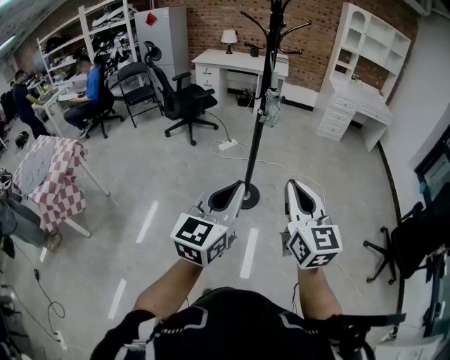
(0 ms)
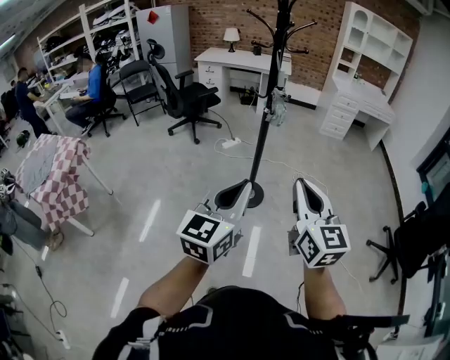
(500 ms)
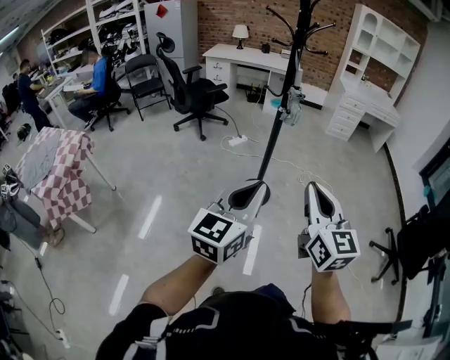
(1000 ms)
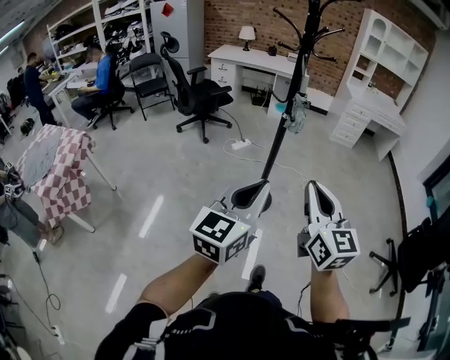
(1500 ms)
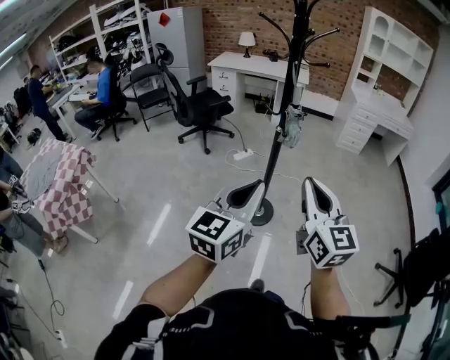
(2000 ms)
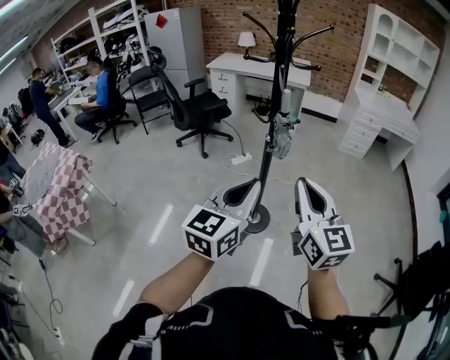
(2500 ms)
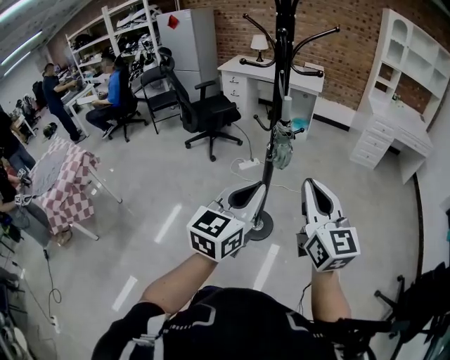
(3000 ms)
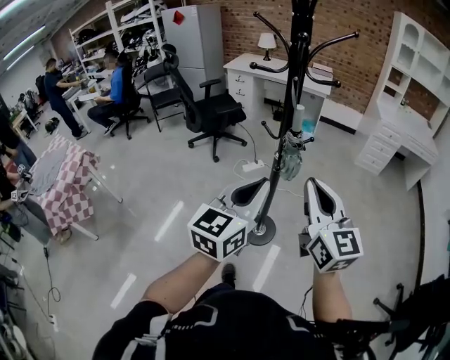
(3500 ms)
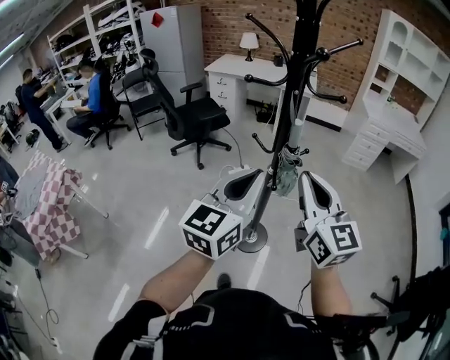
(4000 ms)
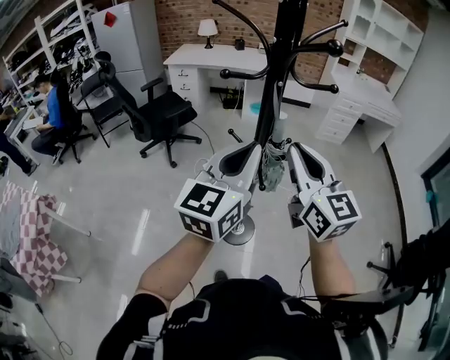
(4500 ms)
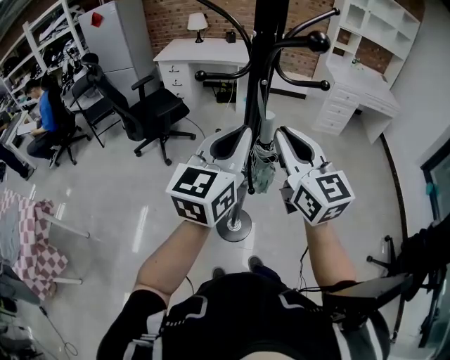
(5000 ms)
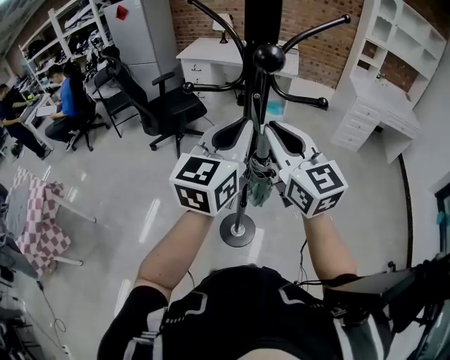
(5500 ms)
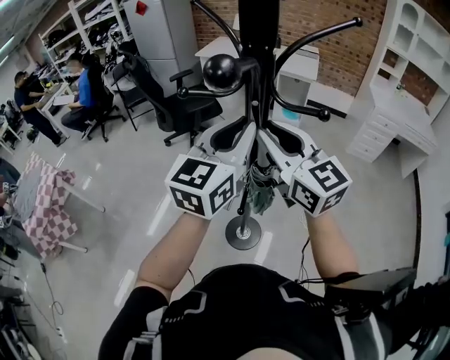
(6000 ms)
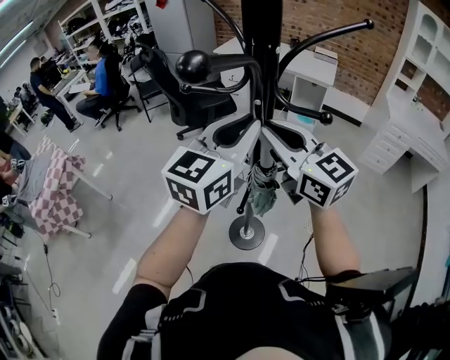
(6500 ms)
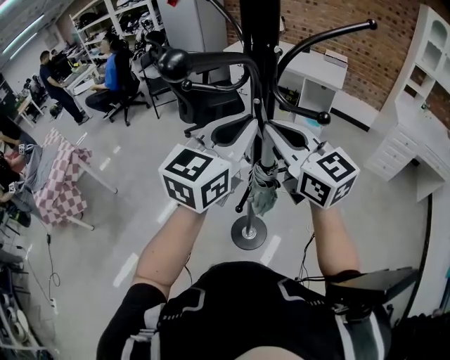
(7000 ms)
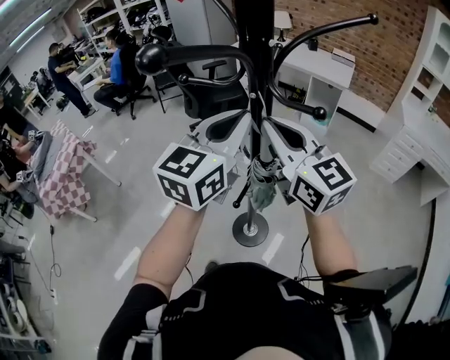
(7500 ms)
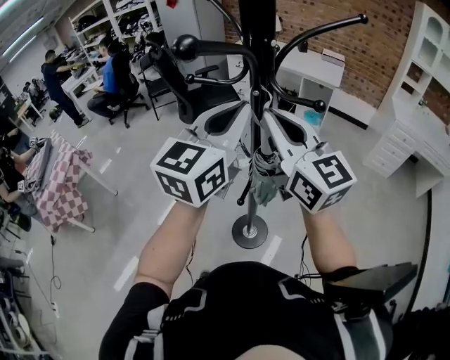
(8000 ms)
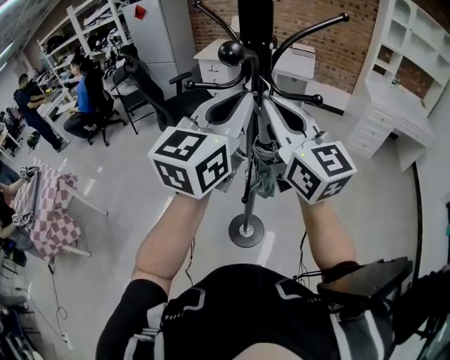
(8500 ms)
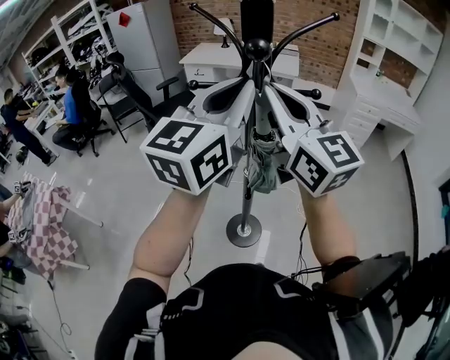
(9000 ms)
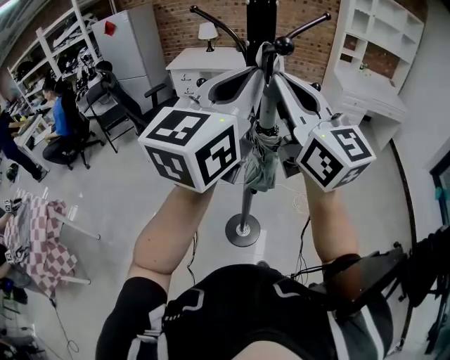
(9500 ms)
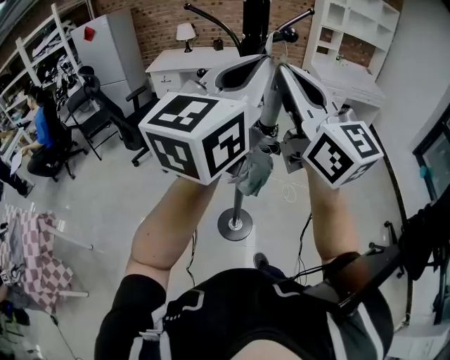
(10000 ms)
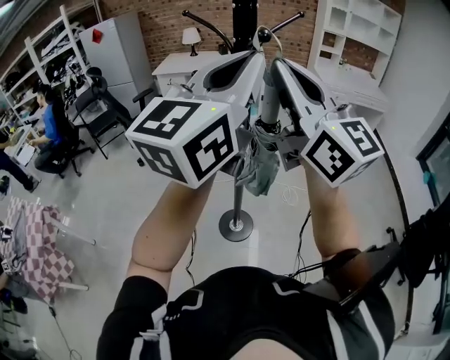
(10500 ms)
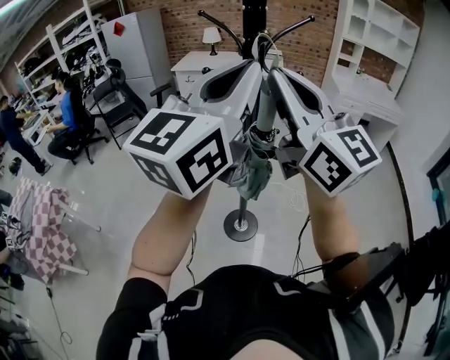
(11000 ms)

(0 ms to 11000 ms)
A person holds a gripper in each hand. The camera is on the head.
0 ms - 2000 ms: Both grippers move forward, approximately 15 cm.
2000 ms - 3500 ms: Both grippers travel together forward, roughly 20 cm.
3500 ms - 5500 ms: The grippers both shift forward by approximately 25 cm.
5500 ms - 7500 ms: The right gripper changes its angle by about 20 degrees.
7500 ms - 9000 ms: Both grippers travel together upward, approximately 10 cm. The right gripper turns by approximately 20 degrees.
9000 ms - 11000 ms: Both grippers travel together backward and upward, some 15 cm.

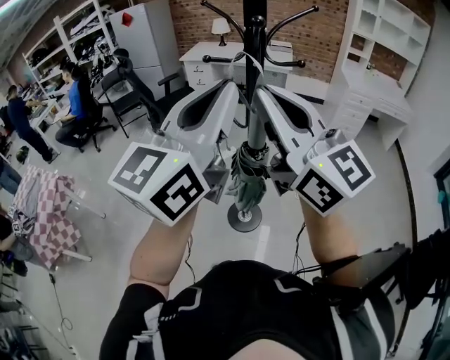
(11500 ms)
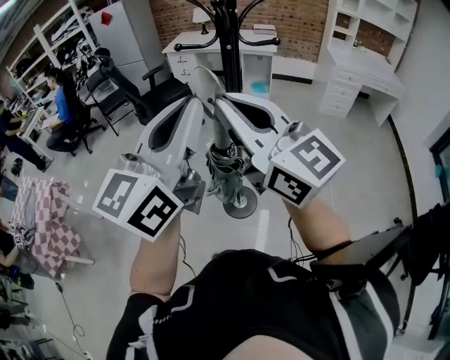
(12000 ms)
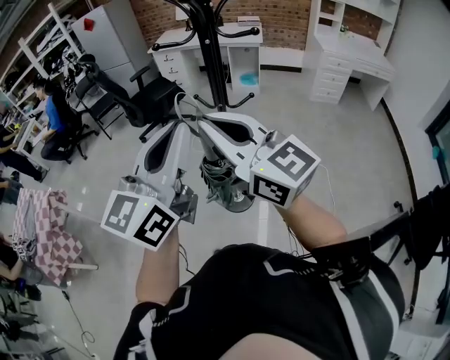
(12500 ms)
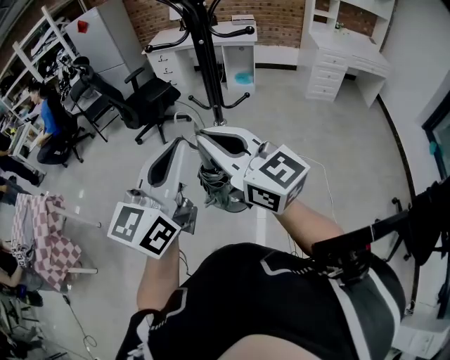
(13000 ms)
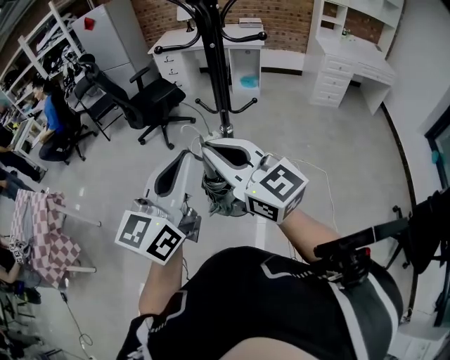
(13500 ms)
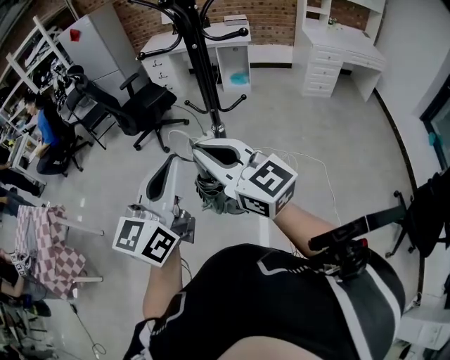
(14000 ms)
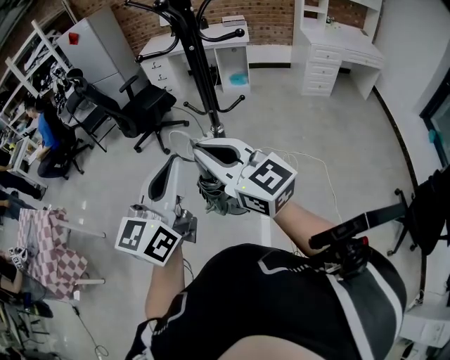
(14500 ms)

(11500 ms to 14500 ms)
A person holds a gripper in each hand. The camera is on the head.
11500 ms - 13000 ms: The grippers both shift downward by some 15 cm.
13000 ms - 14500 ms: The grippers make only small movements.

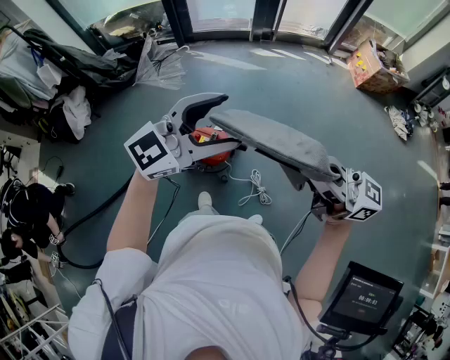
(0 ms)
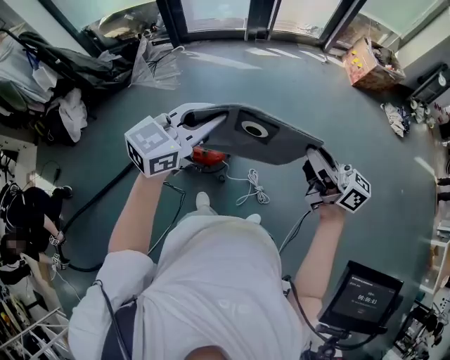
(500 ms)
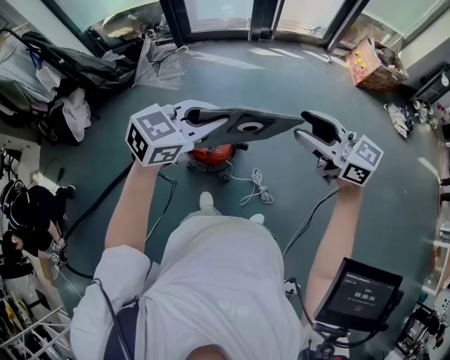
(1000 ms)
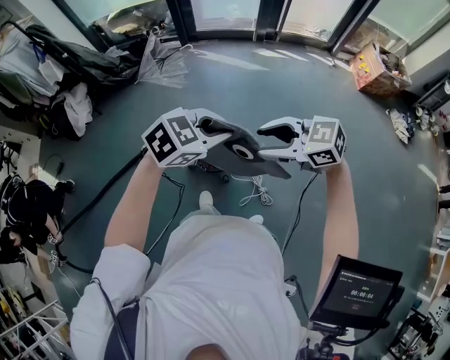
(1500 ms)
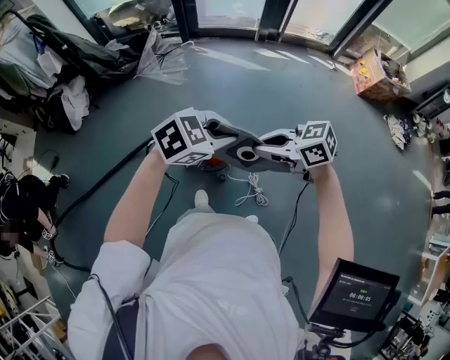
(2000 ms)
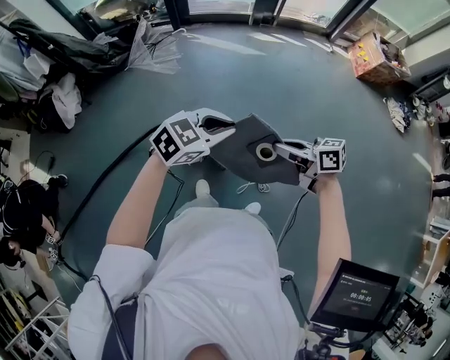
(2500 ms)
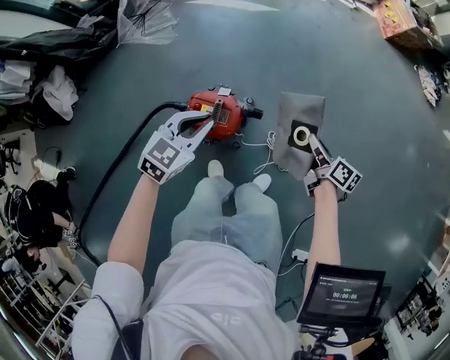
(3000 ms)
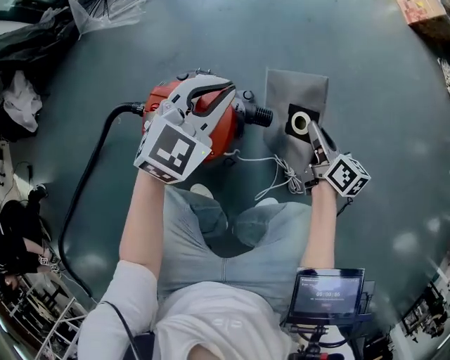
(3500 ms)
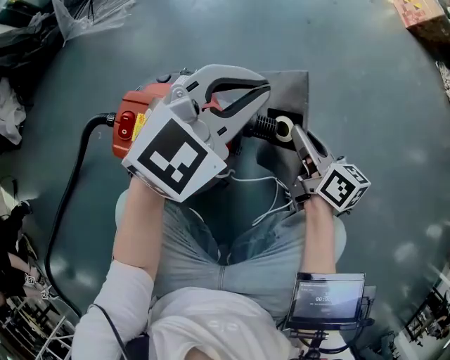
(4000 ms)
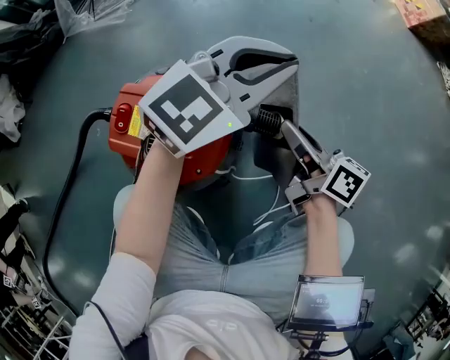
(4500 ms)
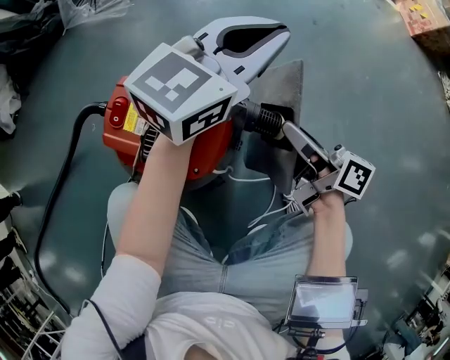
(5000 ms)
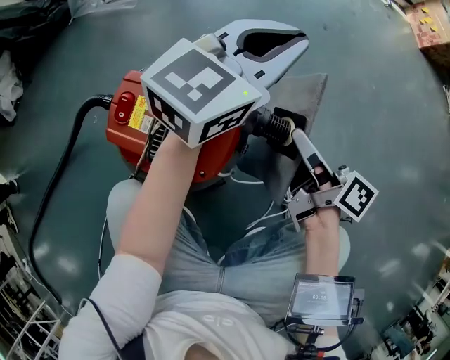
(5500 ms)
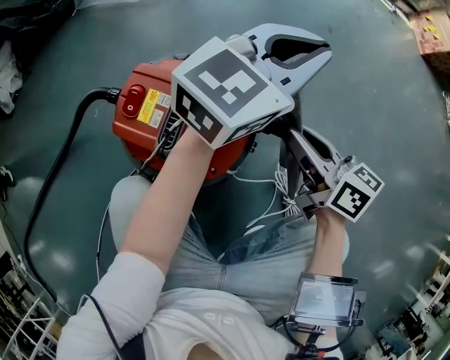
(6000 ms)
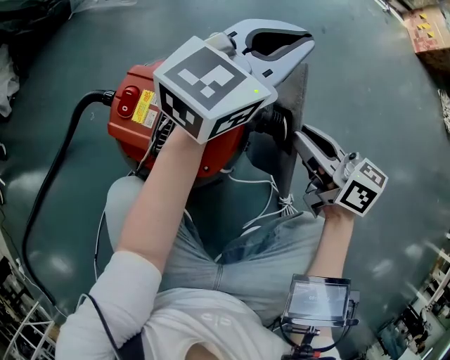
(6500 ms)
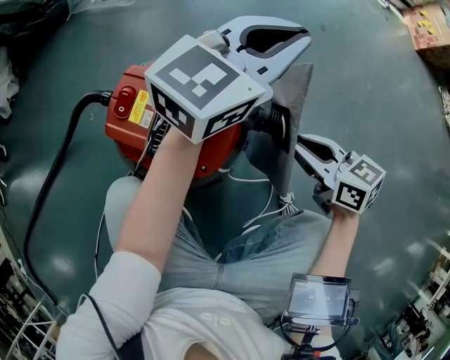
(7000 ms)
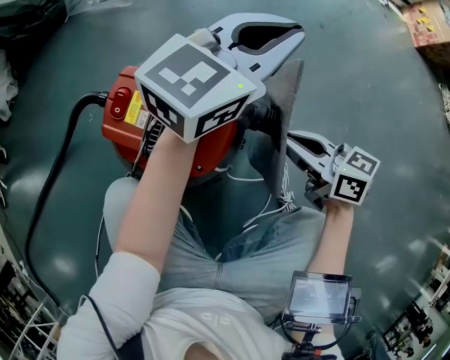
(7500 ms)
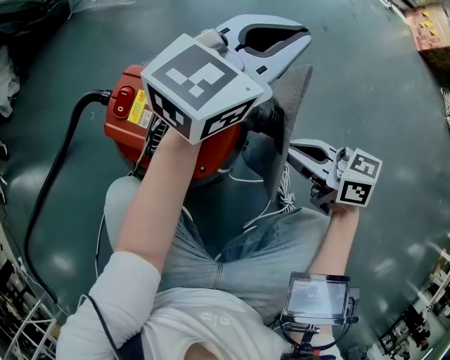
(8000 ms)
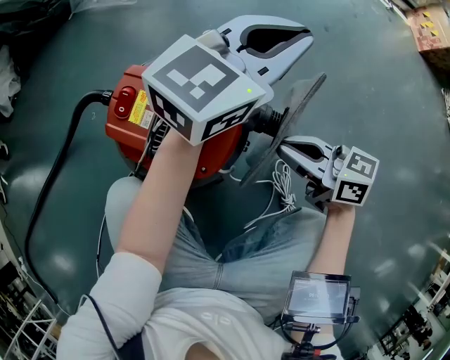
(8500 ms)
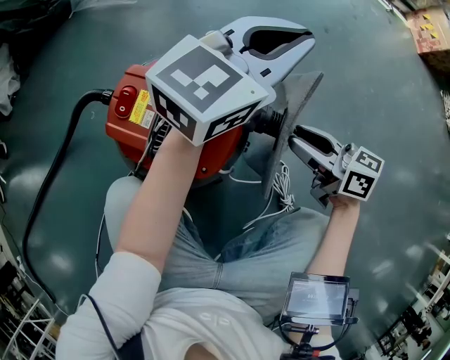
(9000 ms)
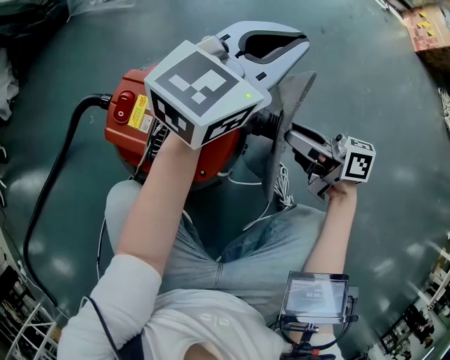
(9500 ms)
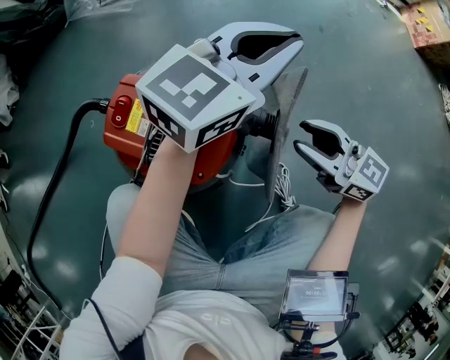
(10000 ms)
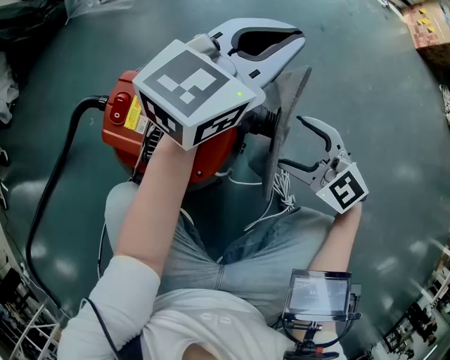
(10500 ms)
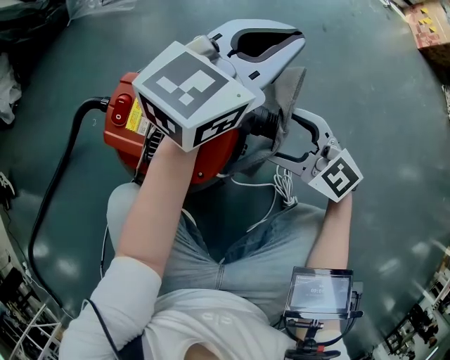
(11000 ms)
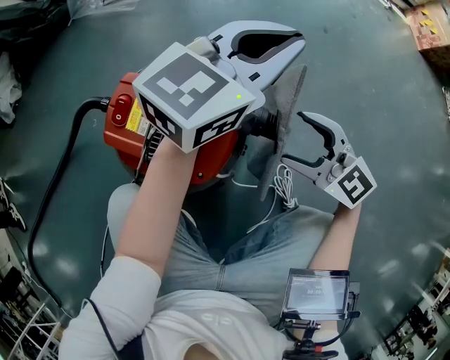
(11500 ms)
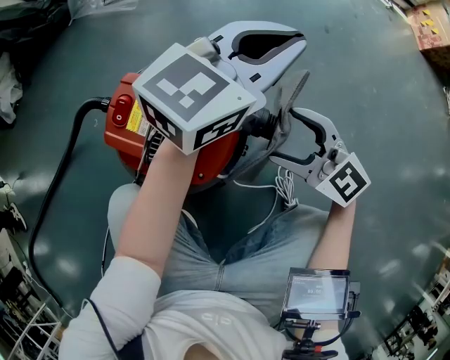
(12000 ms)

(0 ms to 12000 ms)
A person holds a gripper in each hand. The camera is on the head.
0 ms - 2000 ms: The grippers both shift downward by roughly 15 cm. The left gripper points its fingers some 40 degrees further downward, and closes. The right gripper angles its fingers downward, by approximately 40 degrees, and opens, then closes once more.
2000 ms - 4000 ms: Both grippers travel together downward, some 60 cm. The right gripper turns by about 70 degrees, while the left gripper changes its angle by some 30 degrees.
4000 ms - 6000 ms: The right gripper travels to the left by about 5 cm. The left gripper is displaced forward by some 5 cm, and changes its angle by approximately 30 degrees.
6000 ms - 8000 ms: The right gripper turns by roughly 20 degrees.
8000 ms - 10000 ms: The right gripper swivels approximately 30 degrees, and opens.
10000 ms - 12000 ms: The right gripper is displaced to the left by roughly 5 cm, swivels about 20 degrees, and opens up.

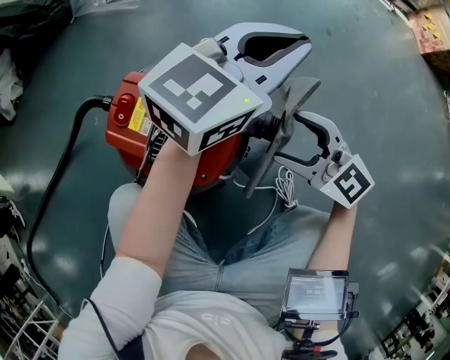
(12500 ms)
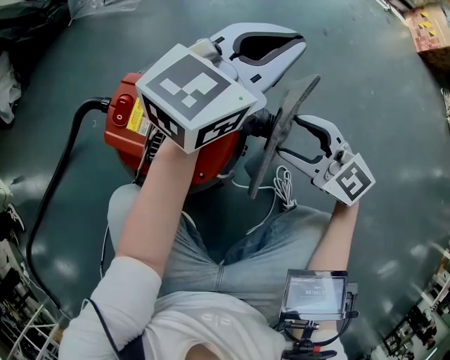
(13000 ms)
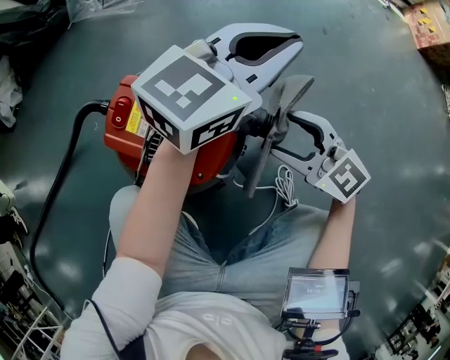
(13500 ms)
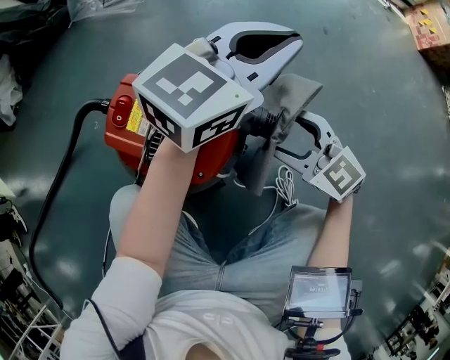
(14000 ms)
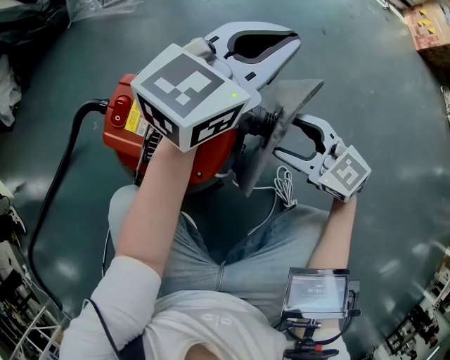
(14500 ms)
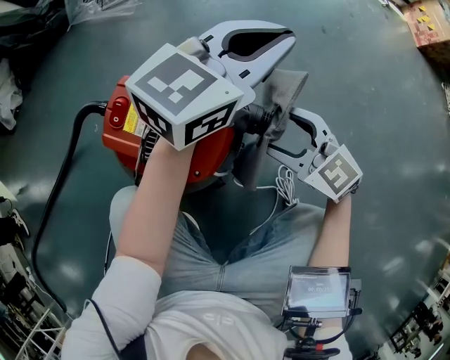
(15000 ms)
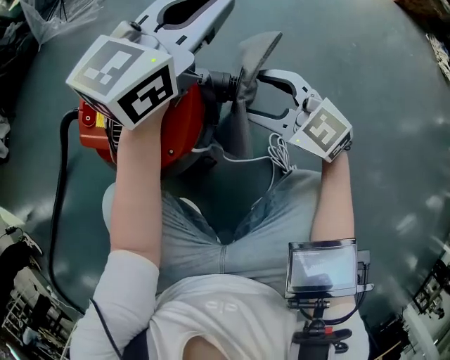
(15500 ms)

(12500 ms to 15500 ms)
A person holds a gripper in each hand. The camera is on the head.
12500 ms - 15500 ms: The grippers stay close to where they were, moving slightly.
